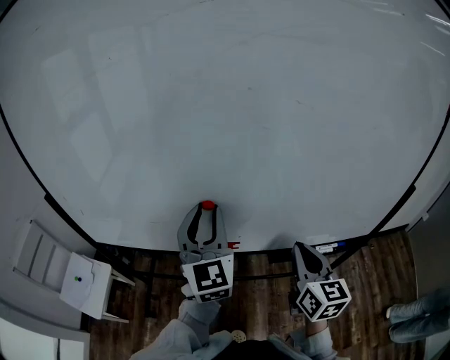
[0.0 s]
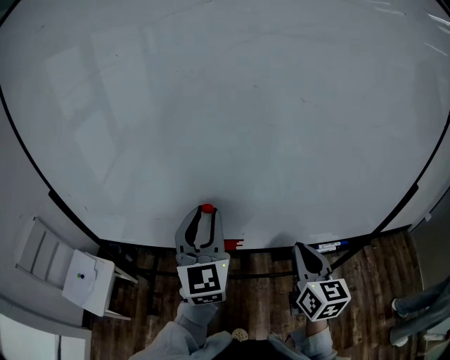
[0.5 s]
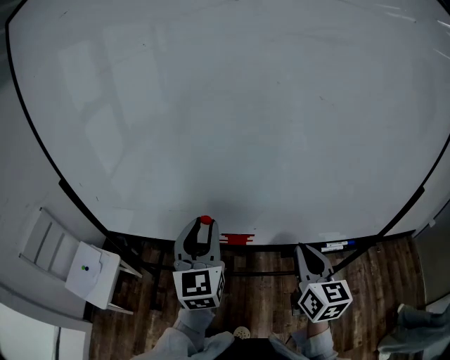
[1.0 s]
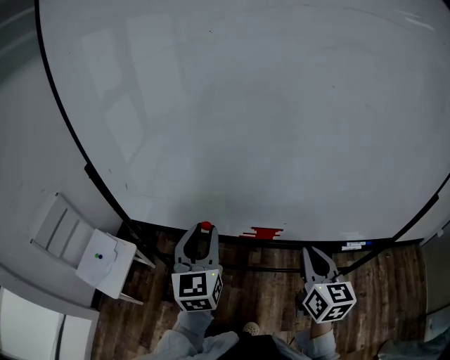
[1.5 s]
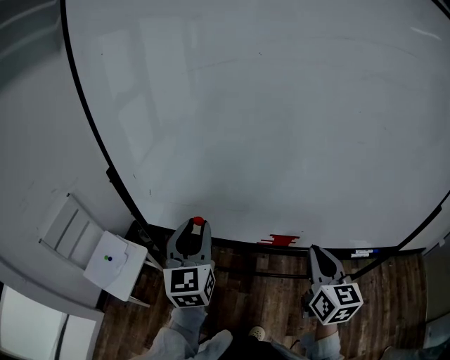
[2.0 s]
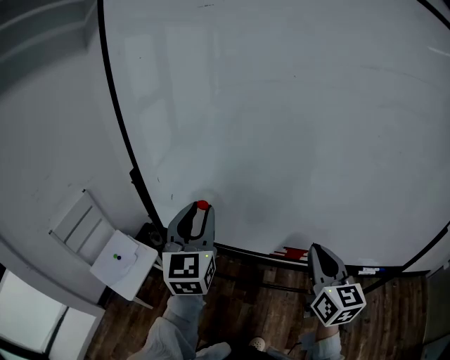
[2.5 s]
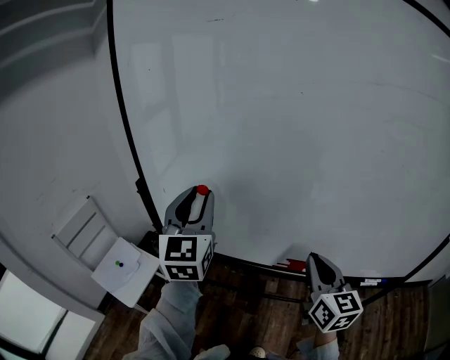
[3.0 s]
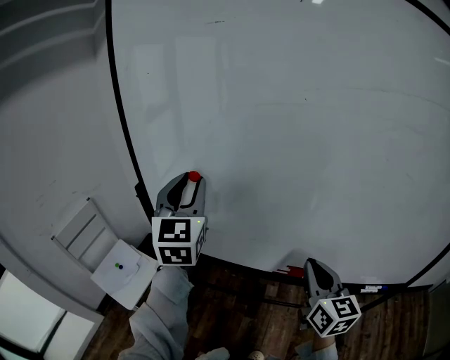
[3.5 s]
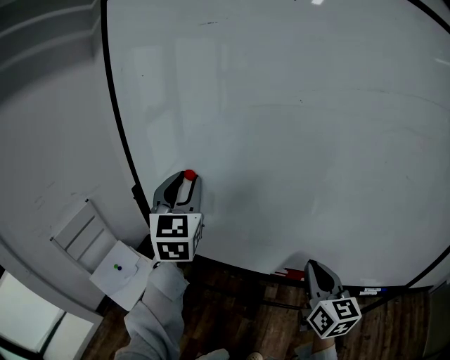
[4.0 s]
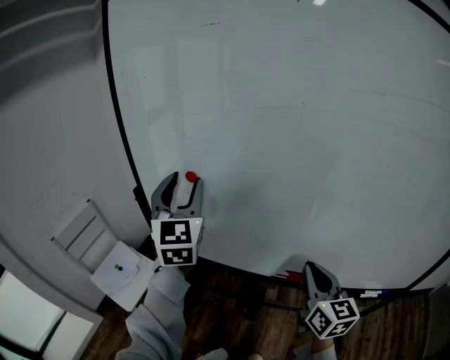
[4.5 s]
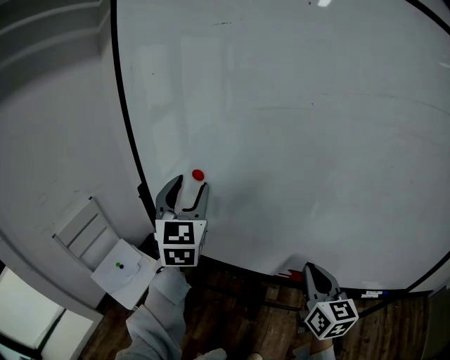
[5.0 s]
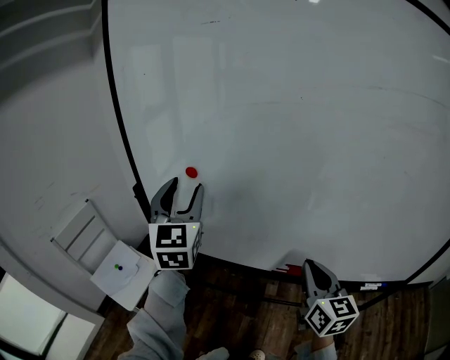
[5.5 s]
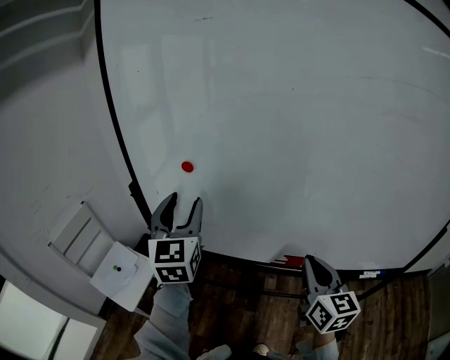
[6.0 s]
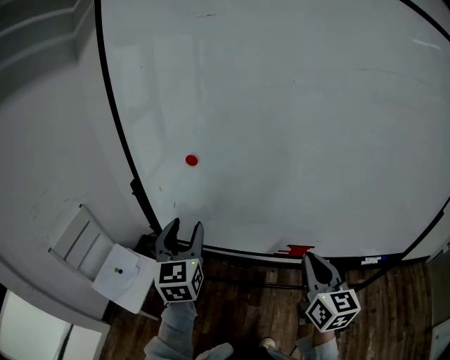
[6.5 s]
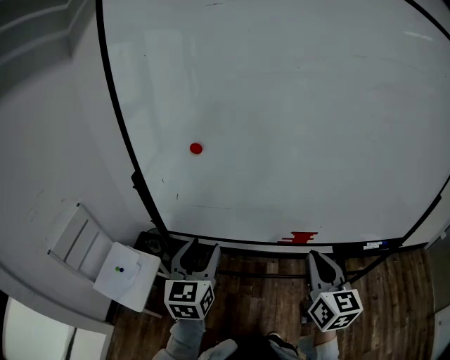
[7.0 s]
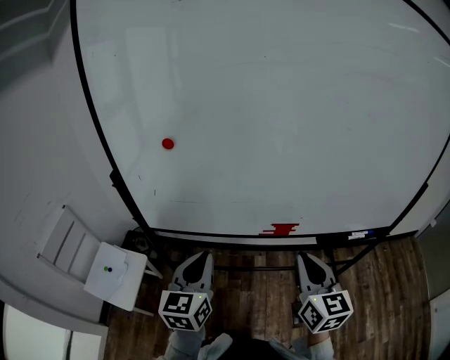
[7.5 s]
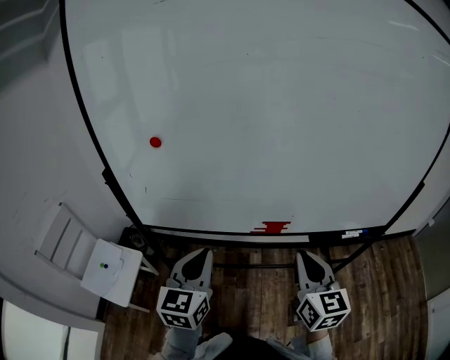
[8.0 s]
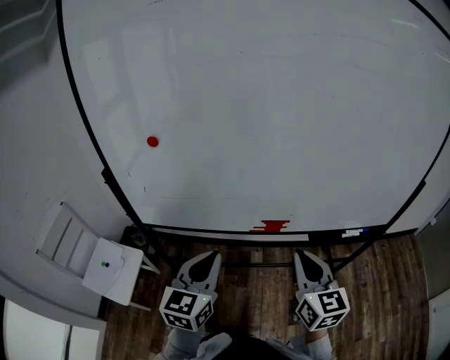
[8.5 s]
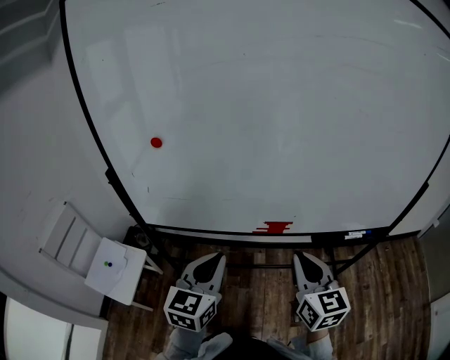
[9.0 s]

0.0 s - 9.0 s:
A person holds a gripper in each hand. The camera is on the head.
0.0 s - 2.0 s: The right gripper goes some 15 cm to the left; the left gripper travels to the left by about 25 cm.
2.0 s - 4.5 s: The right gripper moves forward and to the left, roughly 10 cm. Meanwhile the left gripper moves upward, forward and to the left, about 20 cm, and turns by approximately 20 degrees.
4.5 s - 7.0 s: The left gripper is displaced downward and backward by about 25 cm, and changes its angle by about 30 degrees; the right gripper moves backward, approximately 10 cm.
7.0 s - 9.0 s: The right gripper is displaced to the right by roughly 5 cm. The left gripper is displaced to the right by about 15 cm, and closes up.

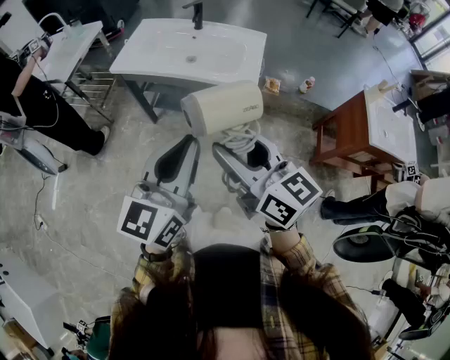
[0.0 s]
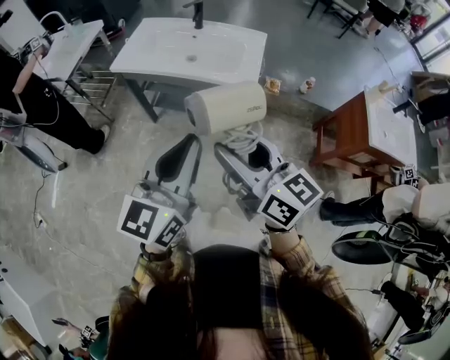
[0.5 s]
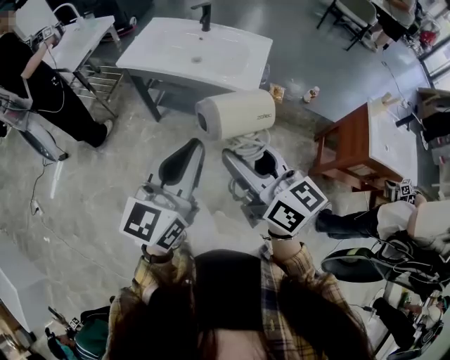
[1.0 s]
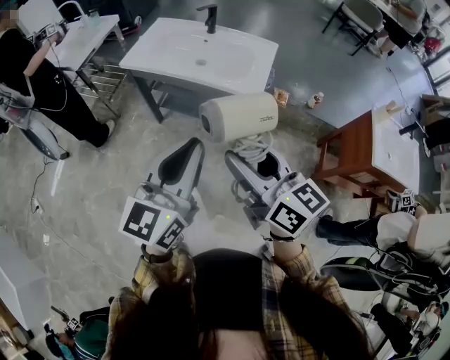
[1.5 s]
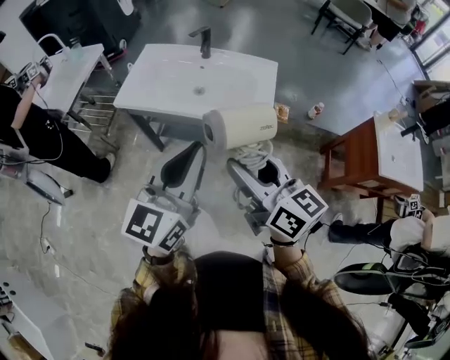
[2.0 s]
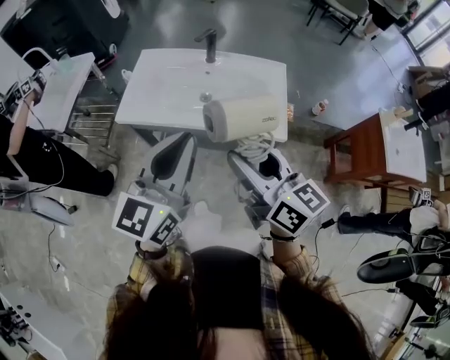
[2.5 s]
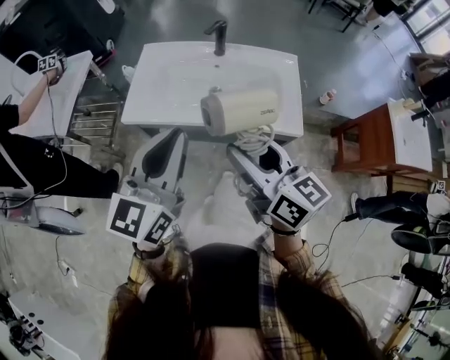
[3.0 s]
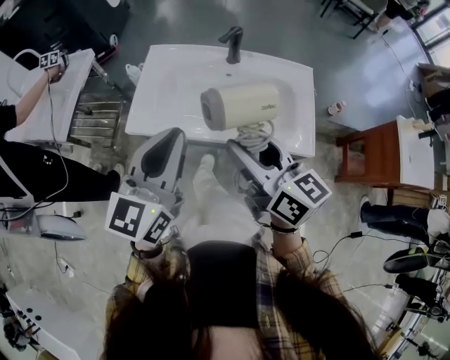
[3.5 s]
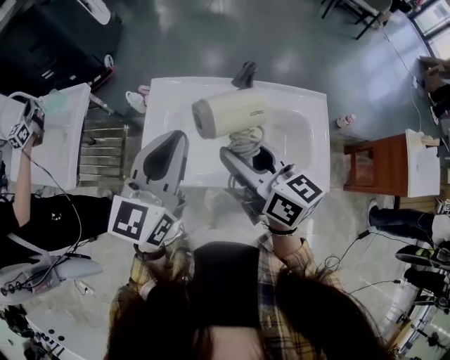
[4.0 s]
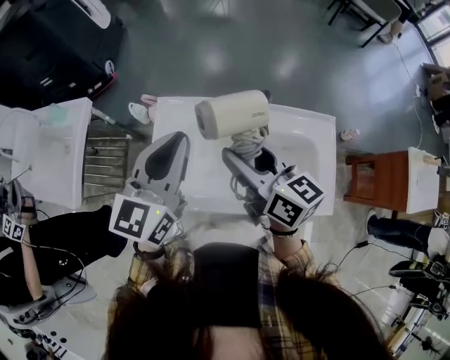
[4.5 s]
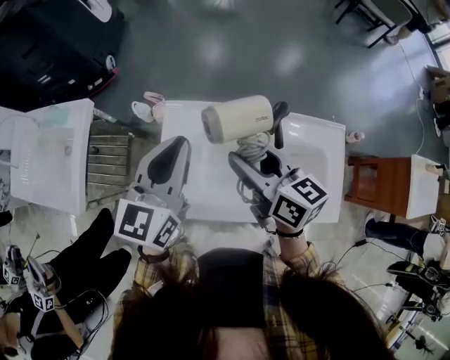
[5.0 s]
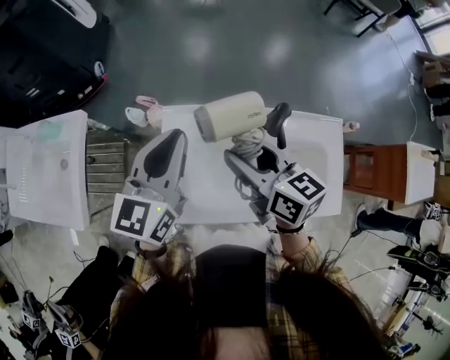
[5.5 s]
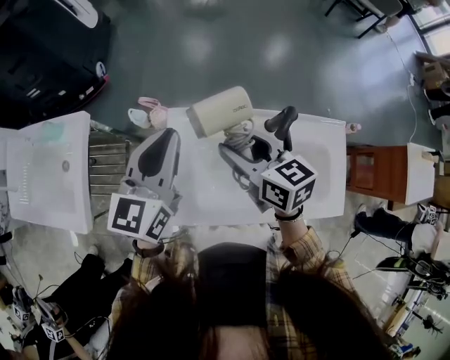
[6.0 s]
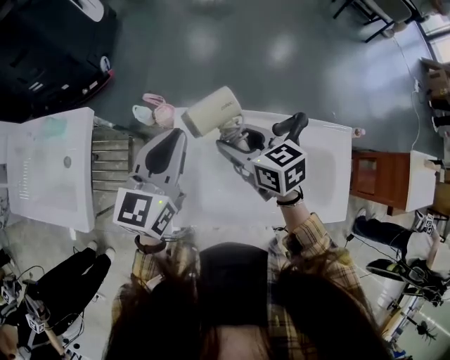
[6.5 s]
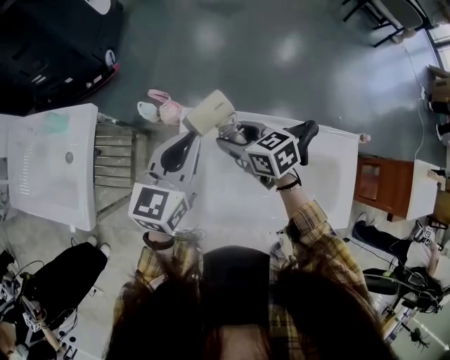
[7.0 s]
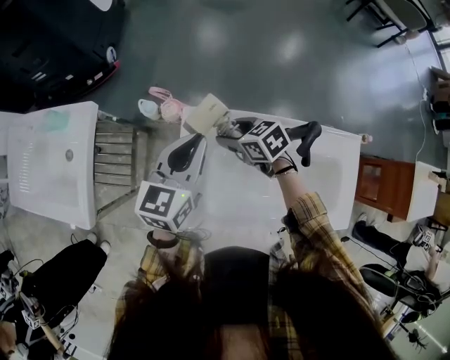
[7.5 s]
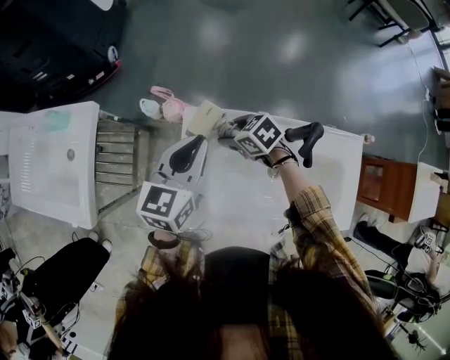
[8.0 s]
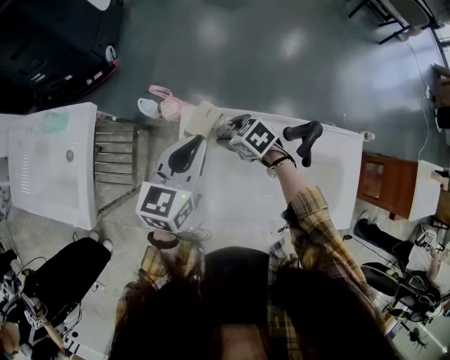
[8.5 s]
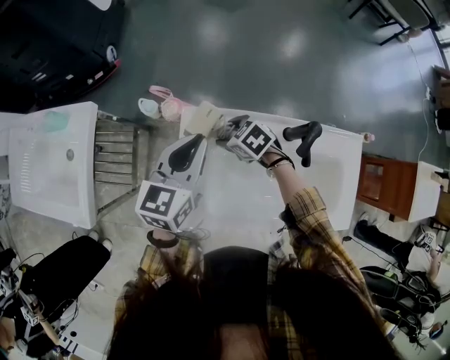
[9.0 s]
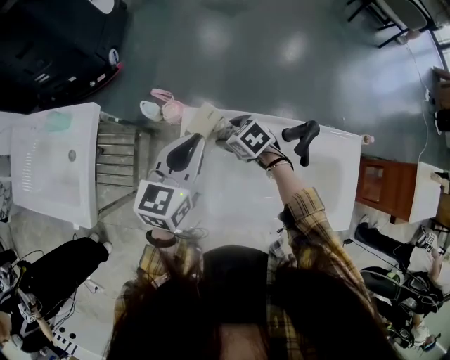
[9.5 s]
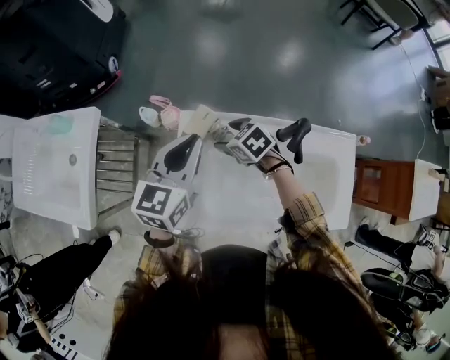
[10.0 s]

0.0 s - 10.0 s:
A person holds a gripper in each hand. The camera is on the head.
0.0 s - 2.0 s: Both grippers travel together forward, roughly 15 cm.
2.0 s - 4.0 s: The two grippers travel together, forward and to the left, roughly 40 cm.
4.0 s - 6.0 s: The grippers both shift forward and to the left by about 20 cm.
6.0 s - 8.0 s: The right gripper moves downward, roughly 20 cm, and swivels approximately 40 degrees, while the left gripper heads downward, covering about 10 cm.
8.0 s - 10.0 s: The grippers stay close to where they were, moving slightly.

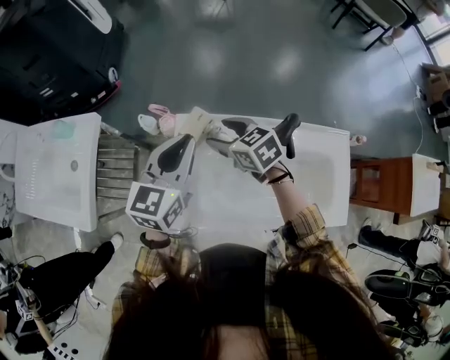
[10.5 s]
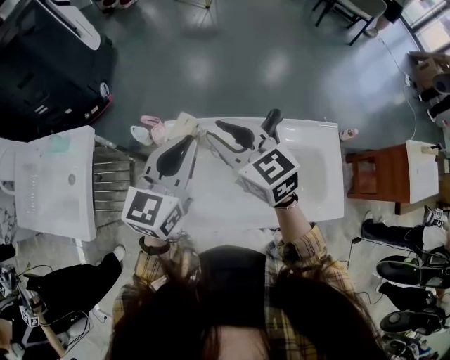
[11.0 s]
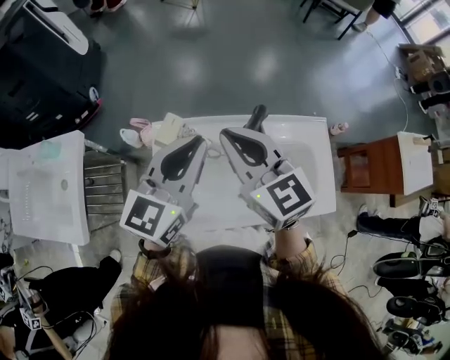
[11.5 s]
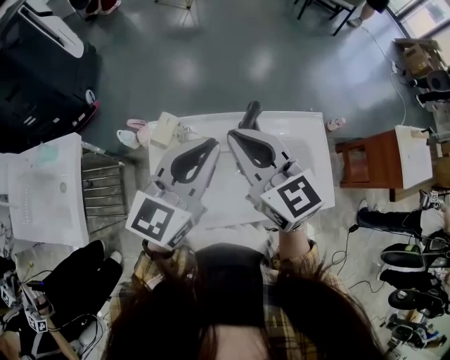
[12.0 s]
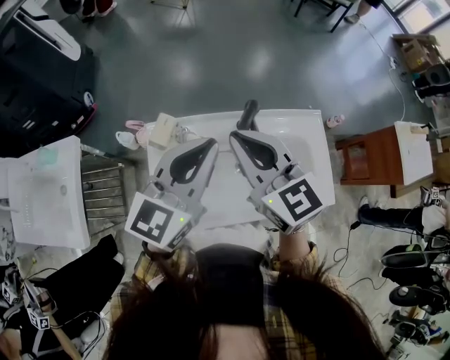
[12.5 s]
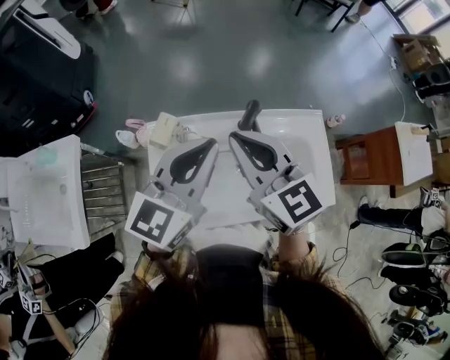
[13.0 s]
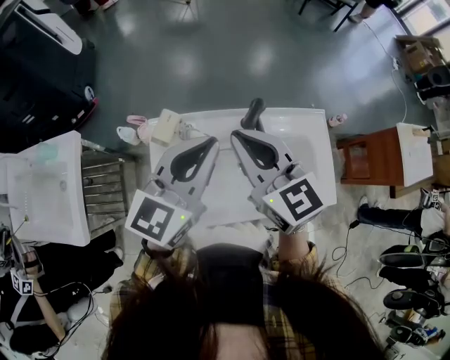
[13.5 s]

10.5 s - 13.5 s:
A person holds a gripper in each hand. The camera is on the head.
10.5 s - 12.0 s: The right gripper heads upward, to the right and backward, covering roughly 25 cm, changes its angle by approximately 40 degrees, and closes. Meanwhile the left gripper heads to the right, upward and backward, covering some 15 cm, and swivels roughly 20 degrees.
12.0 s - 13.5 s: Both grippers stay put.

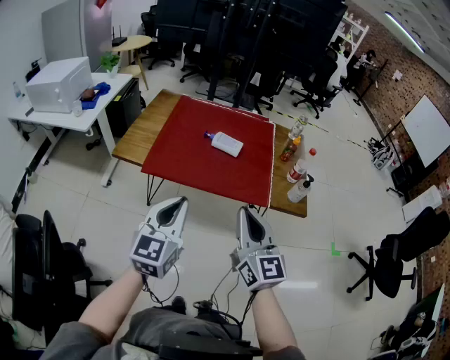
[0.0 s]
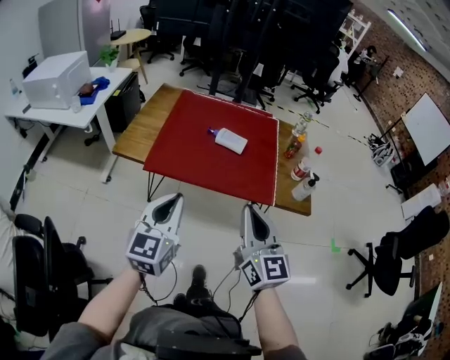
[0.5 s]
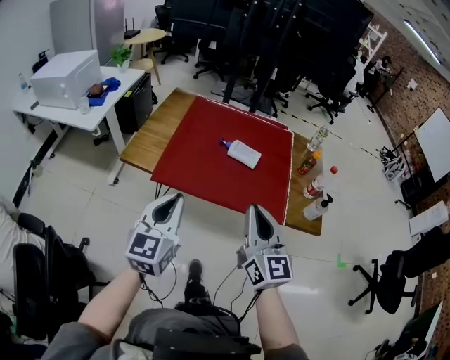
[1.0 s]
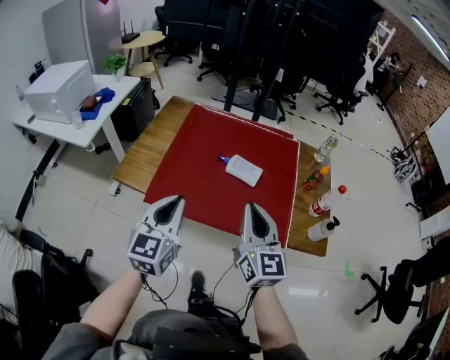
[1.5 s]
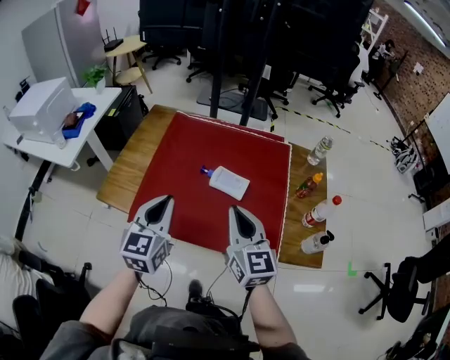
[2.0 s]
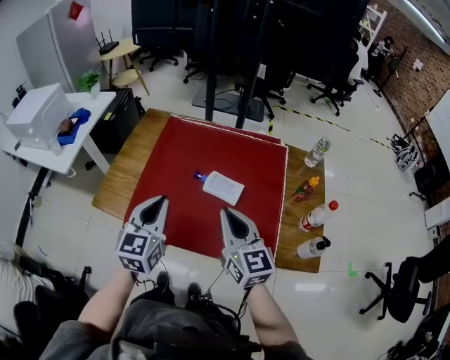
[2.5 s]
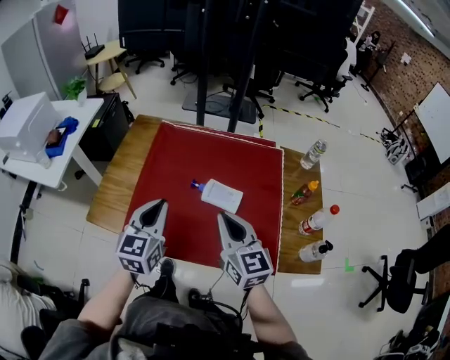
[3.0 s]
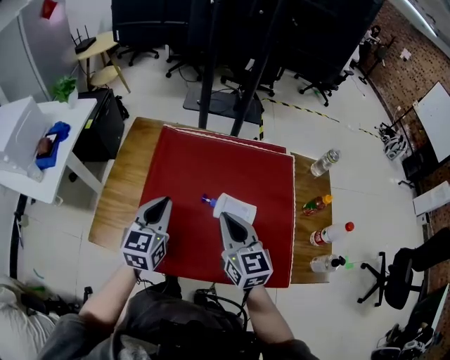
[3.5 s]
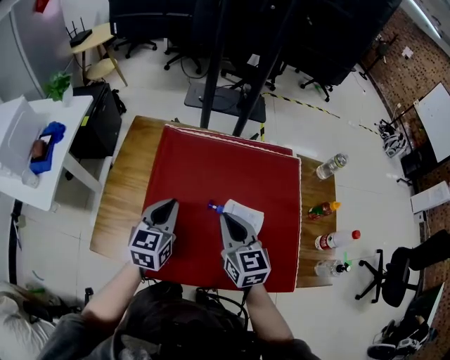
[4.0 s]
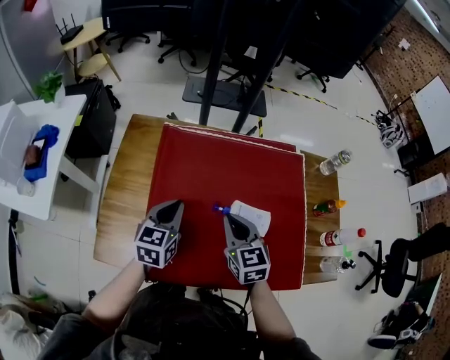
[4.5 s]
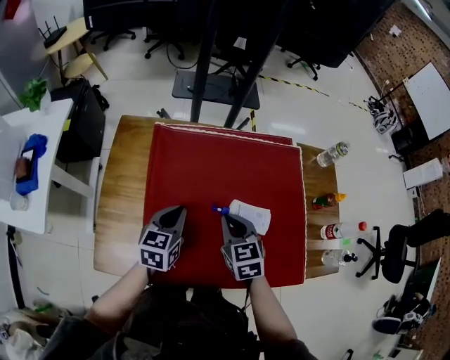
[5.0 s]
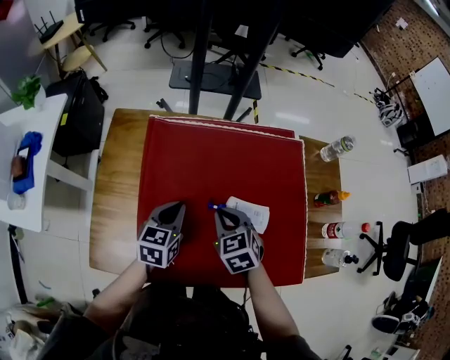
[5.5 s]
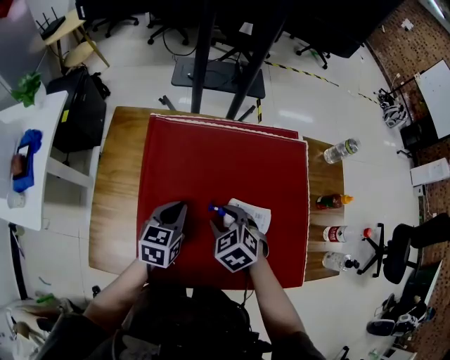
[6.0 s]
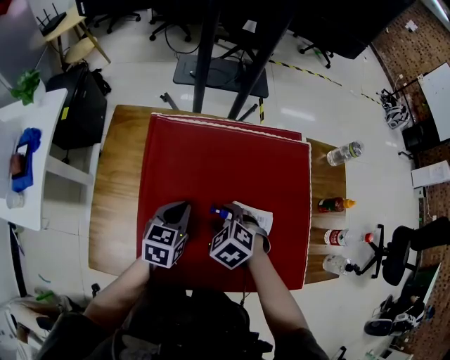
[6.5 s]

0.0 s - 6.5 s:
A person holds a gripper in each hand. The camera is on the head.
0.0 s - 2.0 s: The two grippers go about 35 cm forward.
2.0 s - 4.5 s: The left gripper shifts about 35 cm forward and downward, and changes its angle by roughly 20 degrees, while the right gripper is displaced forward, to the left and downward by about 35 cm, and changes its angle by about 20 degrees.
4.5 s - 6.5 s: Both grippers travel together downward and forward, roughly 10 cm. The right gripper tilts its fingers about 40 degrees downward, and opens up.
